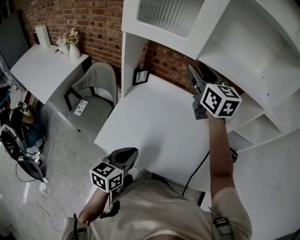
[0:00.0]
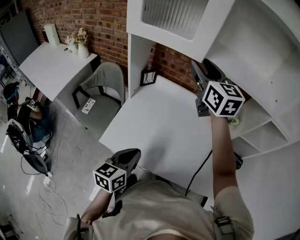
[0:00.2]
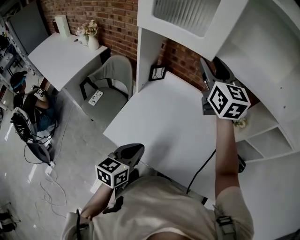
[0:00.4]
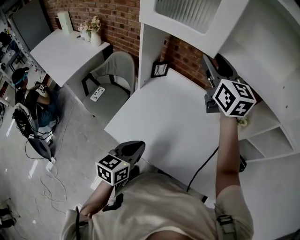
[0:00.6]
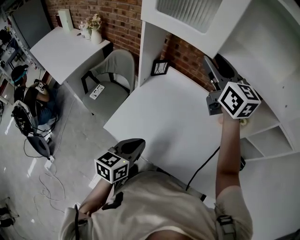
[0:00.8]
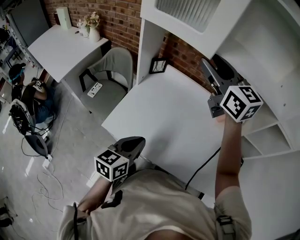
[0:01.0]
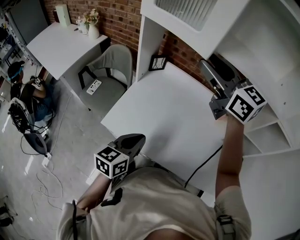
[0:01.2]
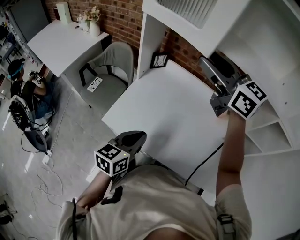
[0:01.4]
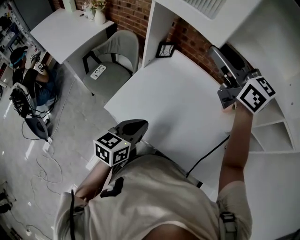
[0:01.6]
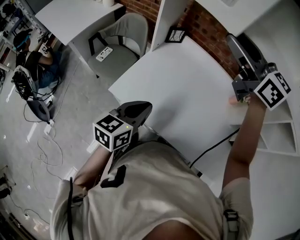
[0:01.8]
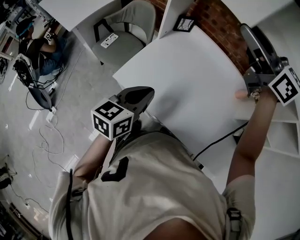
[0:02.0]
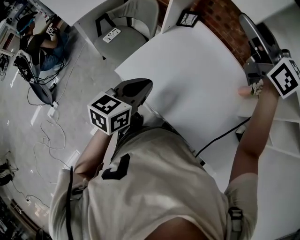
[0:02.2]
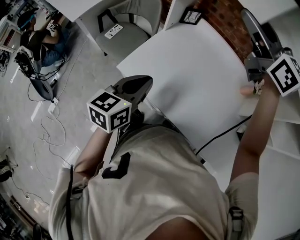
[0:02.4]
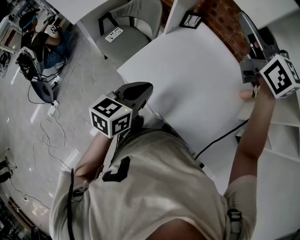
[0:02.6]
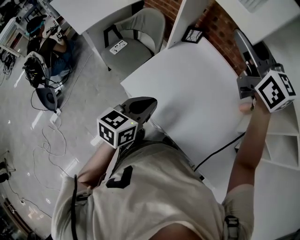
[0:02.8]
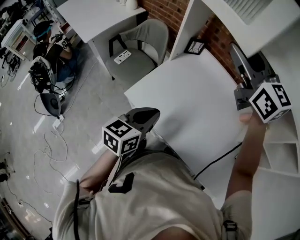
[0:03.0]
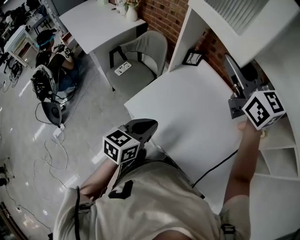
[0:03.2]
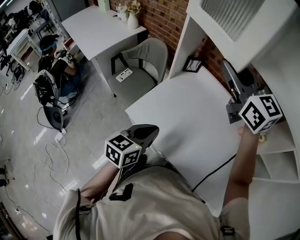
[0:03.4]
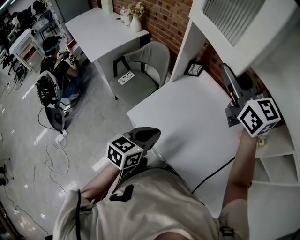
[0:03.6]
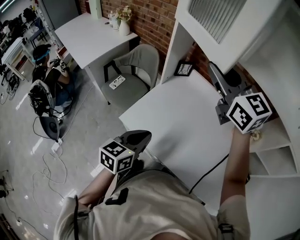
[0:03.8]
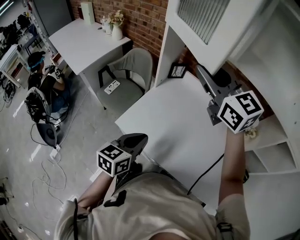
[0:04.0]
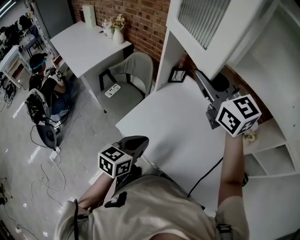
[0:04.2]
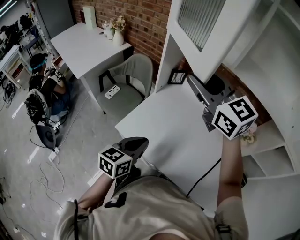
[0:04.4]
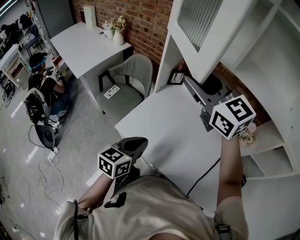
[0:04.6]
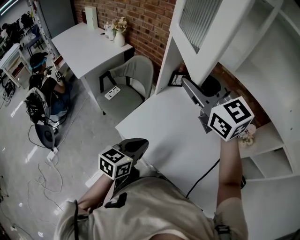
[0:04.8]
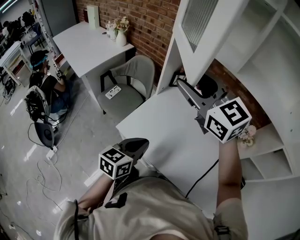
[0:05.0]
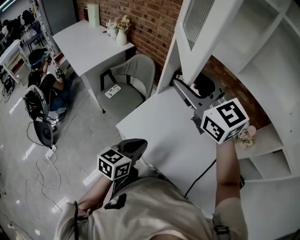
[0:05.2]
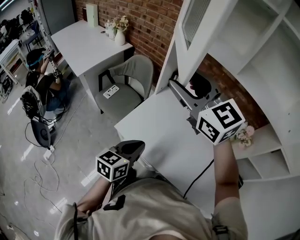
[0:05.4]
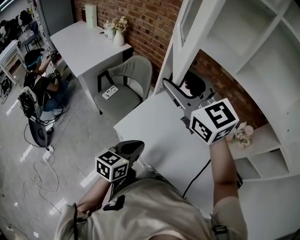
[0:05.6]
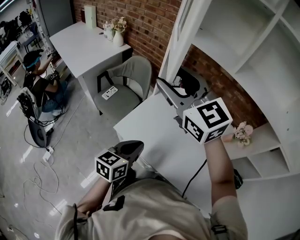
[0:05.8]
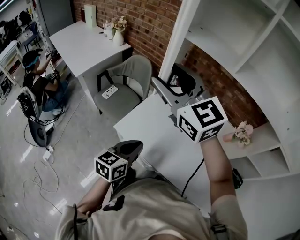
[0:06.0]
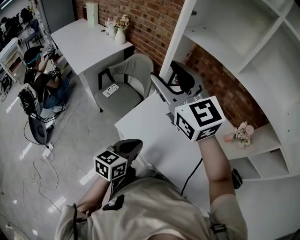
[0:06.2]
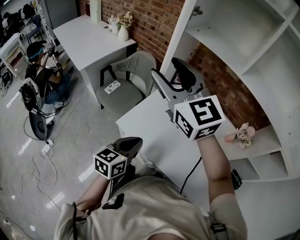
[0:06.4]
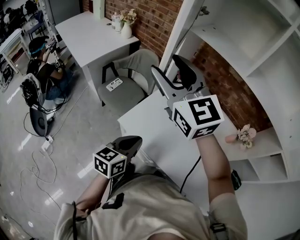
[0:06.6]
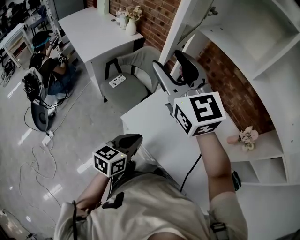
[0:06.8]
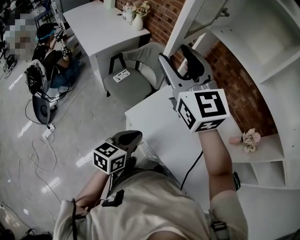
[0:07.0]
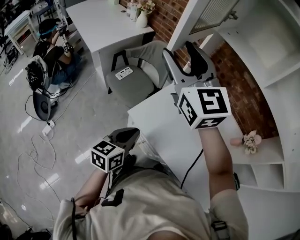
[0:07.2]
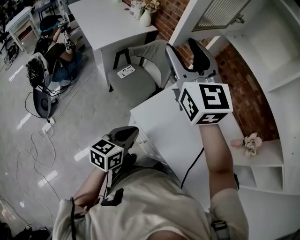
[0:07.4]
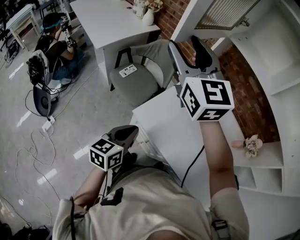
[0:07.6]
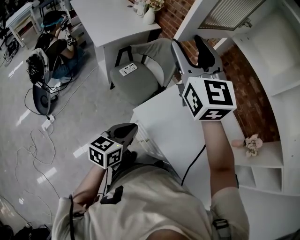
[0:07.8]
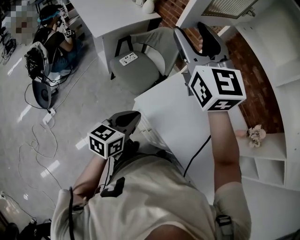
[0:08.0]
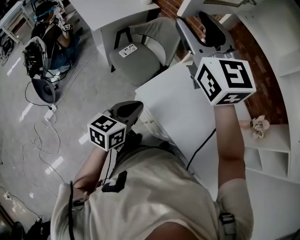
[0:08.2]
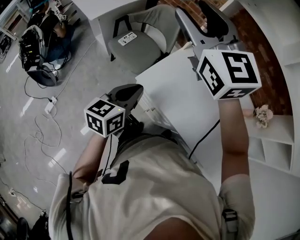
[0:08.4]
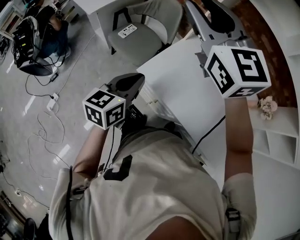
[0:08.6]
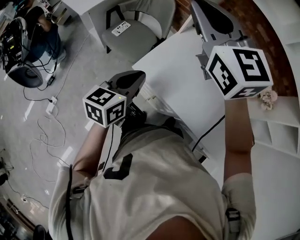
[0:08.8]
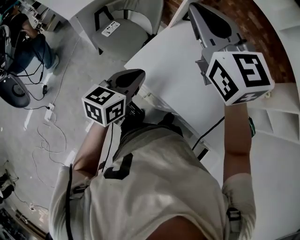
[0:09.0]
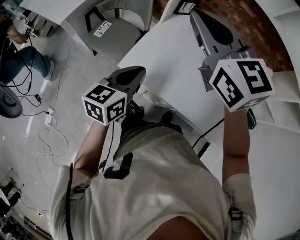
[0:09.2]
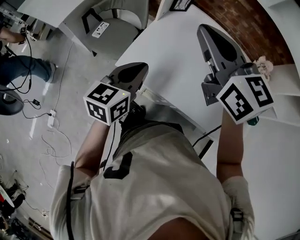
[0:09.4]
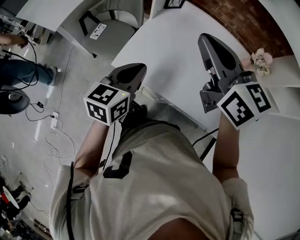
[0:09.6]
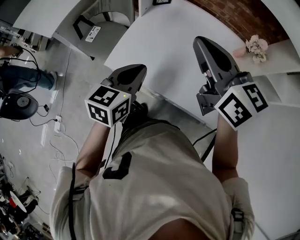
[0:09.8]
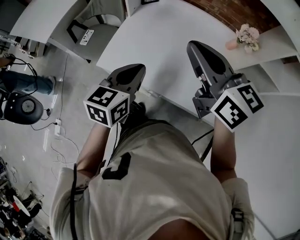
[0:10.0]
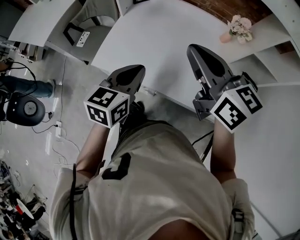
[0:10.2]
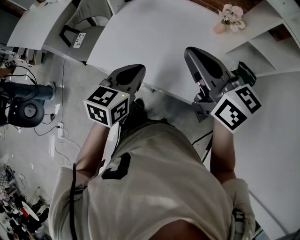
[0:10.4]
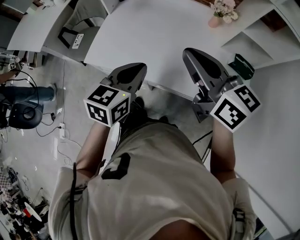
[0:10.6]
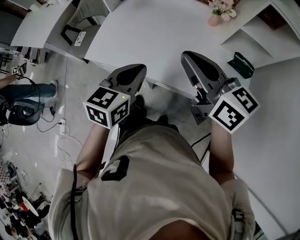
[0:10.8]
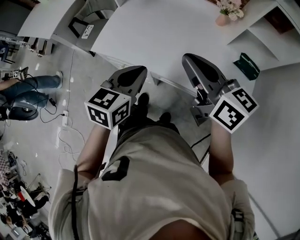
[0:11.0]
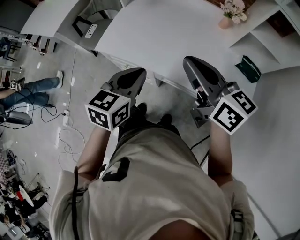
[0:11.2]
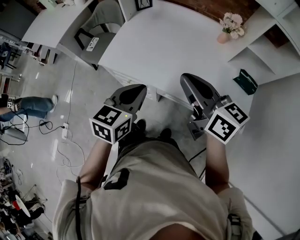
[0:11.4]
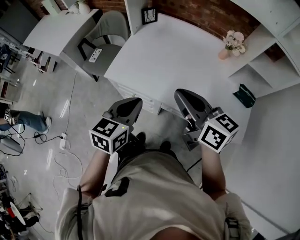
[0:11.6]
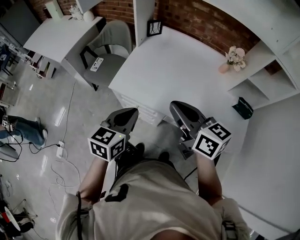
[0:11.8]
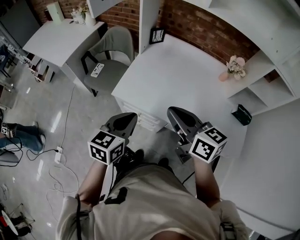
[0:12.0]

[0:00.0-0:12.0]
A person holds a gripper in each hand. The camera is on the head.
0:00.0 to 0:01.6: The right gripper ends up some 5 cm from where it was, and turns by approximately 30 degrees.
0:01.6 to 0:03.0: The grippers move only a little.
0:03.0 to 0:04.4: The grippers stay close to where they were, moving slightly.
0:04.4 to 0:06.0: The right gripper is displaced to the left by approximately 10 cm.
0:06.0 to 0:07.6: The right gripper goes about 15 cm to the left and forward; the left gripper is displaced to the left by some 10 cm.
0:07.6 to 0:09.0: The left gripper shifts by approximately 5 cm; the right gripper travels to the right by some 10 cm, and closes.
0:09.0 to 0:10.4: Both grippers move to the right and backward, about 30 cm. The left gripper swivels roughly 20 degrees; the right gripper changes its angle by about 40 degrees.
0:10.4 to 0:12.0: Both grippers move to the left, about 15 cm.

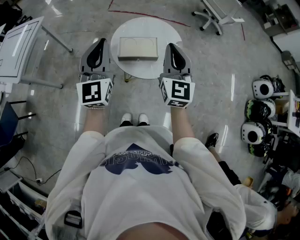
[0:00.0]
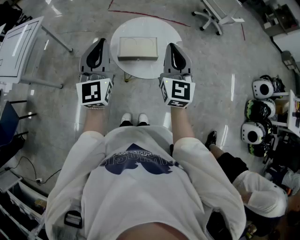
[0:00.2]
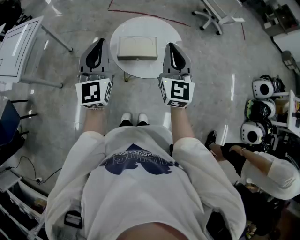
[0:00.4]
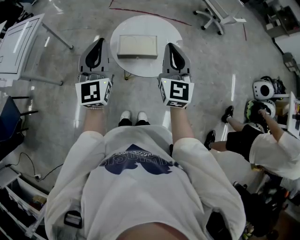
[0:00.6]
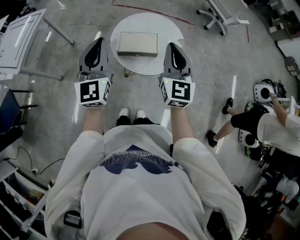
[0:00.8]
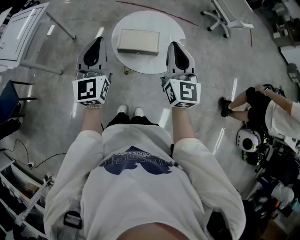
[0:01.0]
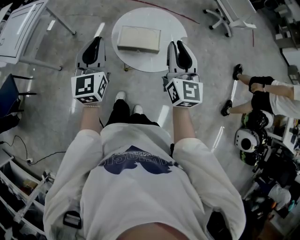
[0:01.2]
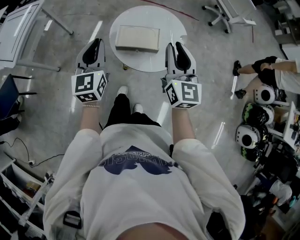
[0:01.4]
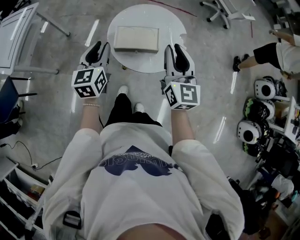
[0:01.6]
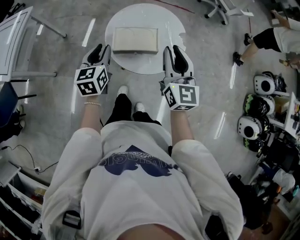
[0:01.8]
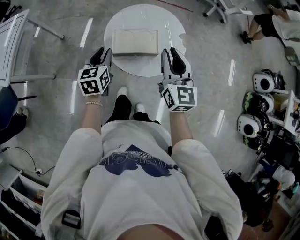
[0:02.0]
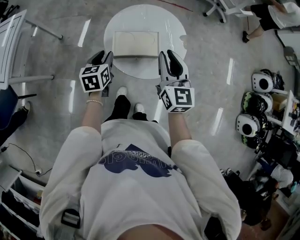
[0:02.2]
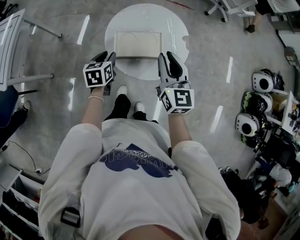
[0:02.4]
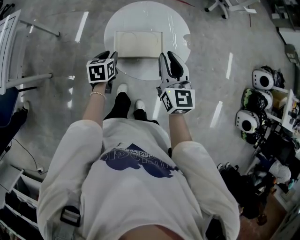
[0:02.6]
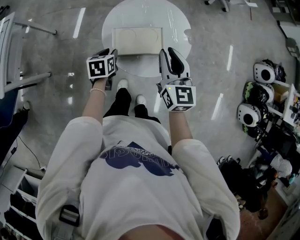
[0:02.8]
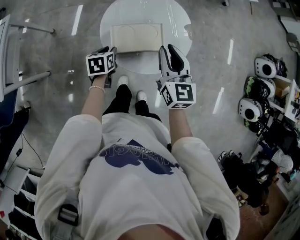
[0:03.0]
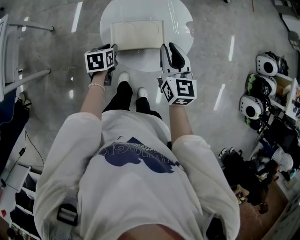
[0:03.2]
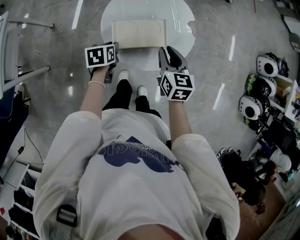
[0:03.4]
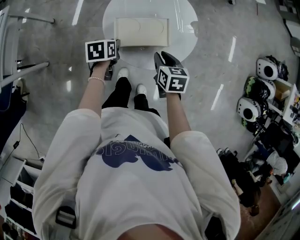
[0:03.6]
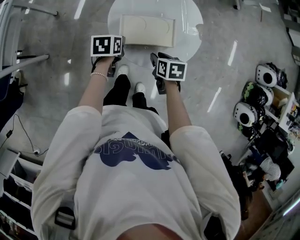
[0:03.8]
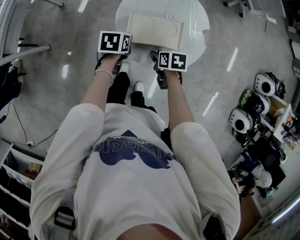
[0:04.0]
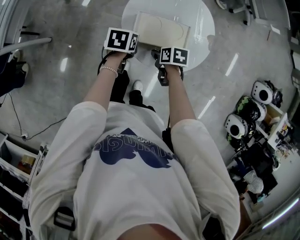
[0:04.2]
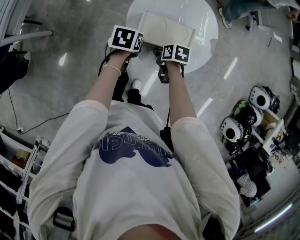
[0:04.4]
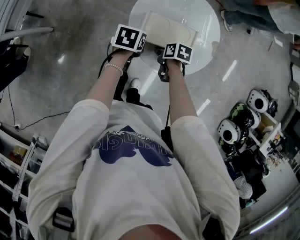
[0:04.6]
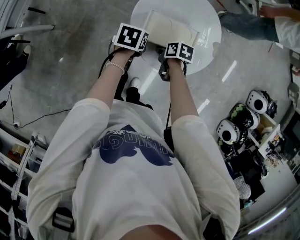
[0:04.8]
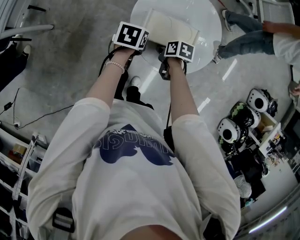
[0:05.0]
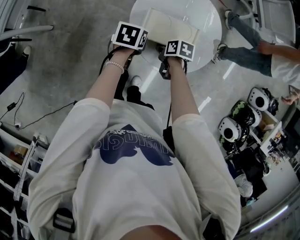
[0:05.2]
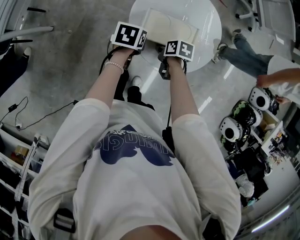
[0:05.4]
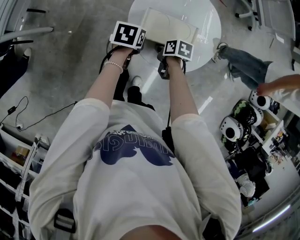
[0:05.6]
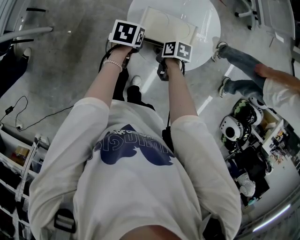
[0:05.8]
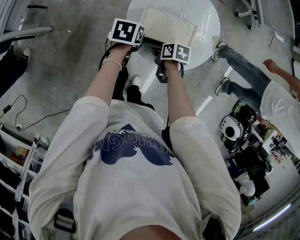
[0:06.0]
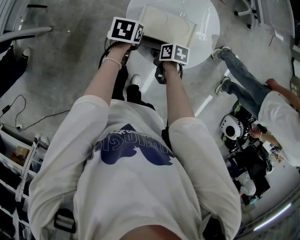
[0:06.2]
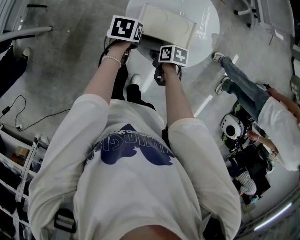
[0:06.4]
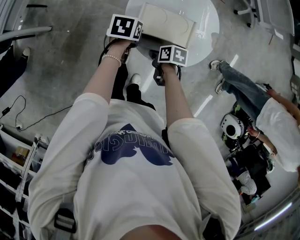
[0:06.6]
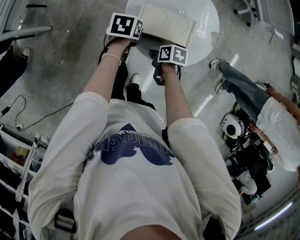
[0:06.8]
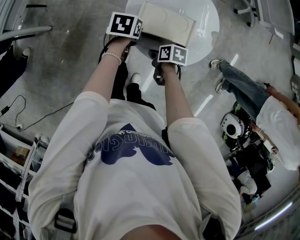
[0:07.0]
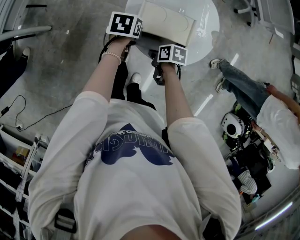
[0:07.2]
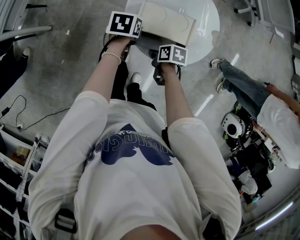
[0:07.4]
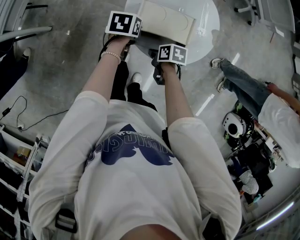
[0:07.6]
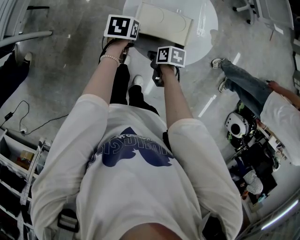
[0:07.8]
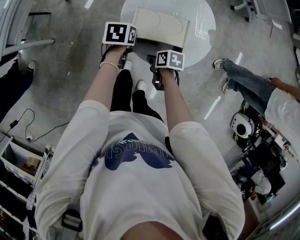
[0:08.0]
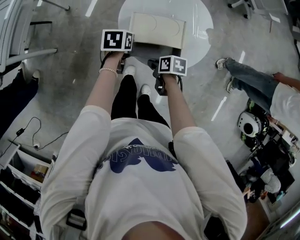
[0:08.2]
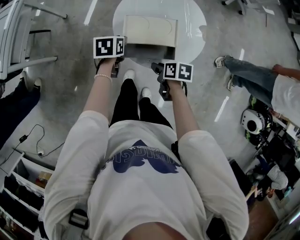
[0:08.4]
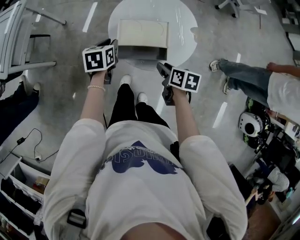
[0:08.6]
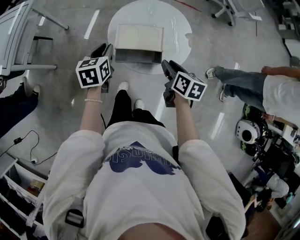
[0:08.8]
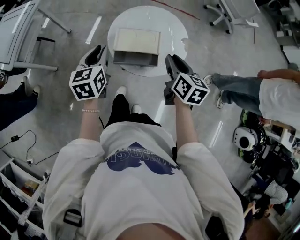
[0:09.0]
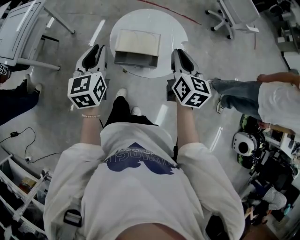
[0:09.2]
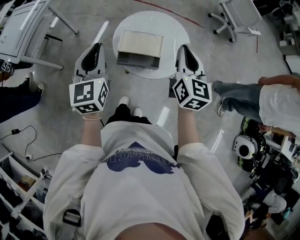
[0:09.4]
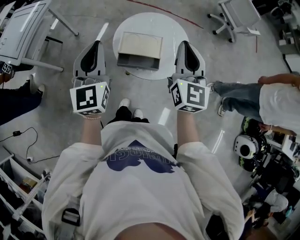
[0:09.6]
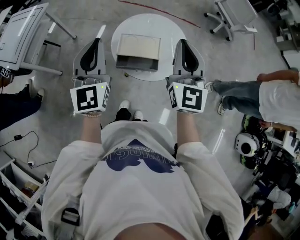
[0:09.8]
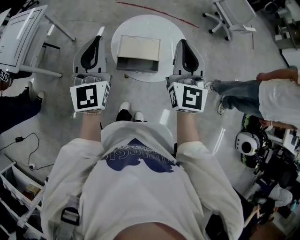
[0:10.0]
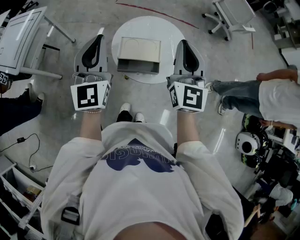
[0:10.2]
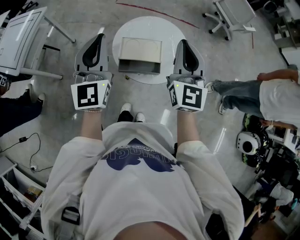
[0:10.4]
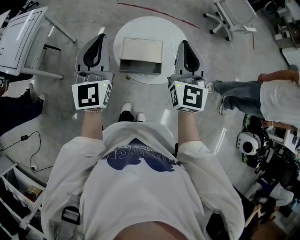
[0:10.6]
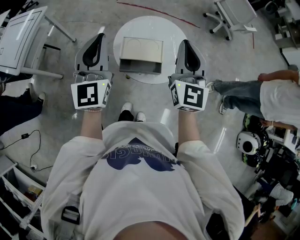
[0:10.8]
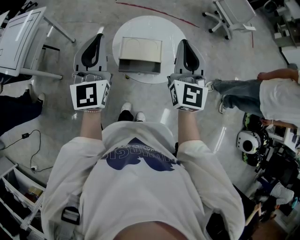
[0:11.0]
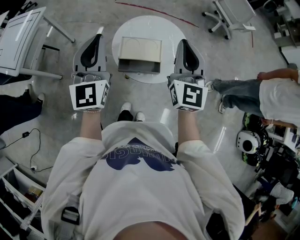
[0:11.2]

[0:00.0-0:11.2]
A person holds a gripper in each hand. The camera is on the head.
0:00.0 to 0:01.6: The left gripper shifts approximately 15 cm downward, turns by roughly 30 degrees, and opens its fingers. Meanwhile the right gripper is displaced downward by some 5 cm.
0:01.6 to 0:03.2: The left gripper is displaced downward and forward by roughly 25 cm, and points its fingers some 40 degrees further downward. Meanwhile the right gripper shifts about 15 cm downward and forward.
0:03.2 to 0:04.8: The right gripper moves downward, some 25 cm, and angles its fingers downward, by roughly 50 degrees.
0:04.8 to 0:06.4: The grippers move only a little.
0:06.4 to 0:08.0: There are only small adjustments of the grippers.
0:08.0 to 0:09.6: Both grippers travel together upward, about 40 cm. The left gripper angles its fingers upward, by approximately 60 degrees. The right gripper angles its fingers upward, by some 60 degrees, and closes.
0:09.6 to 0:11.2: The grippers make only small movements.

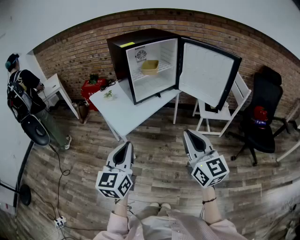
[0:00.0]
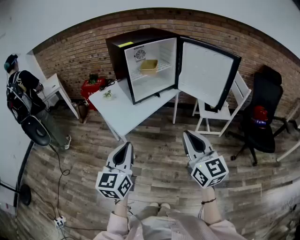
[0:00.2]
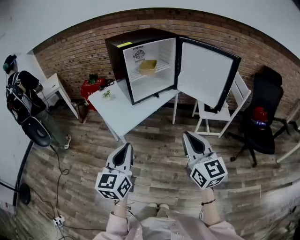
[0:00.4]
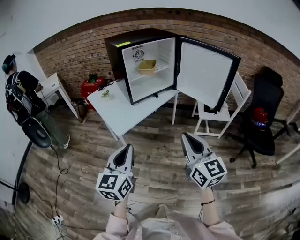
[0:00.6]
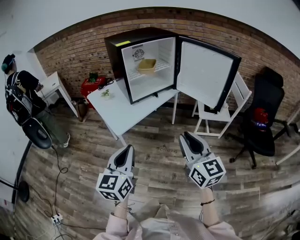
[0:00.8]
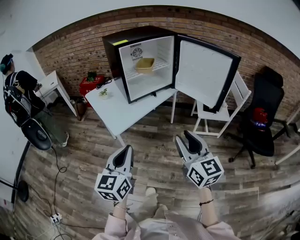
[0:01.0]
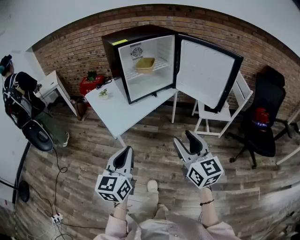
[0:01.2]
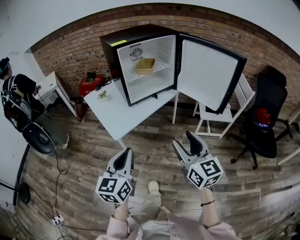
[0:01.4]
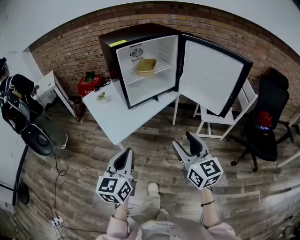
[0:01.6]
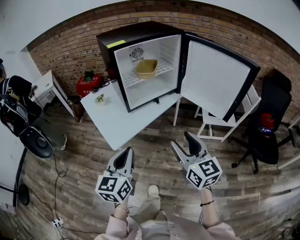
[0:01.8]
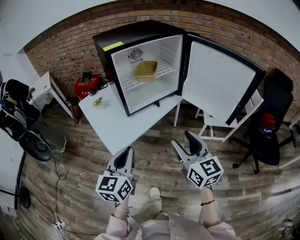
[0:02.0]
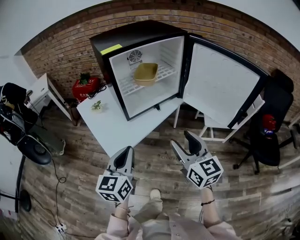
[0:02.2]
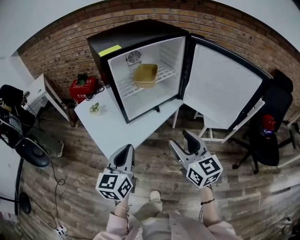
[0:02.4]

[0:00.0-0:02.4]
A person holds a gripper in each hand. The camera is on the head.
0:00.0 to 0:01.2: The right gripper ends up roughly 5 cm from where it was, and opens its fingers; the left gripper shifts by some 5 cm.
0:01.2 to 0:02.4: The grippers both shift forward by about 20 cm.
